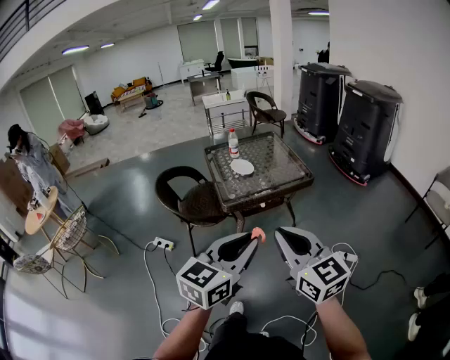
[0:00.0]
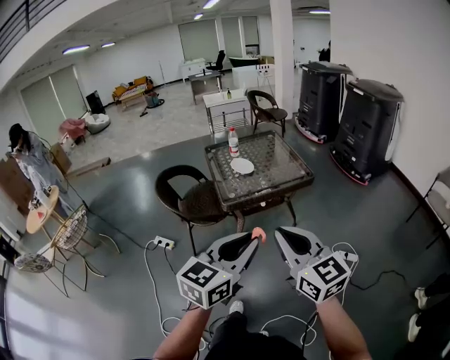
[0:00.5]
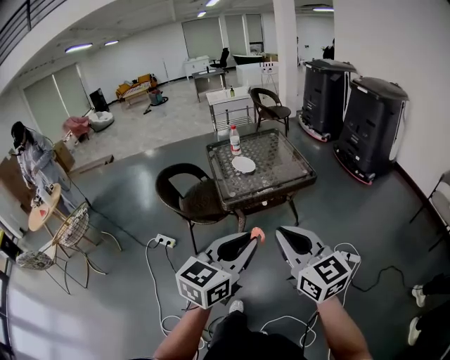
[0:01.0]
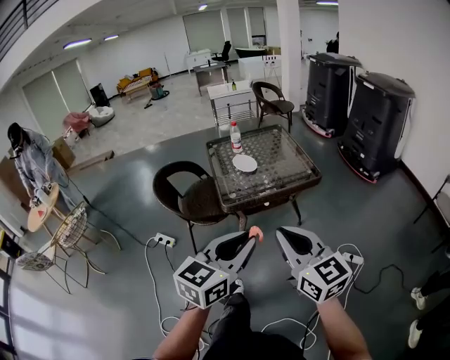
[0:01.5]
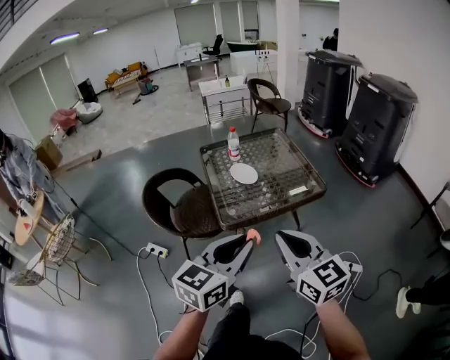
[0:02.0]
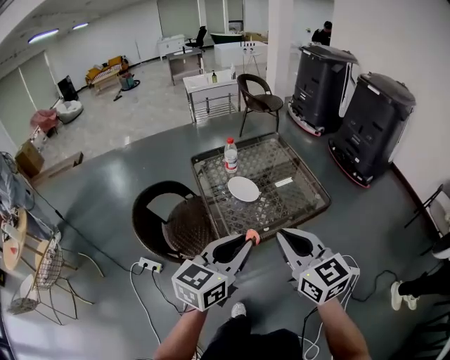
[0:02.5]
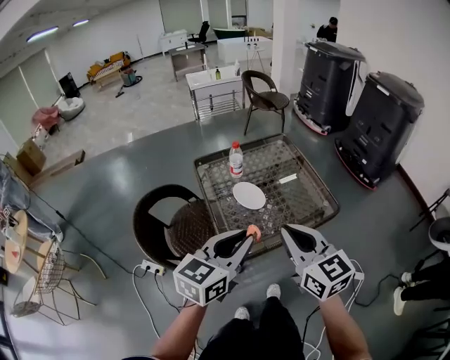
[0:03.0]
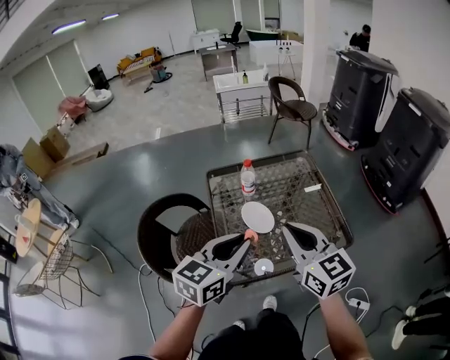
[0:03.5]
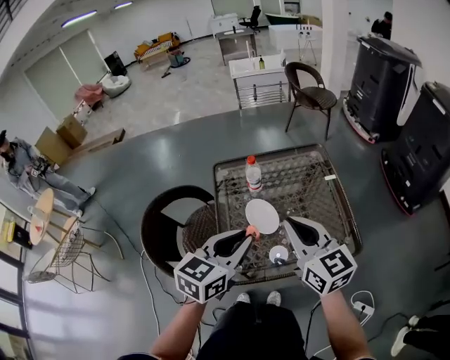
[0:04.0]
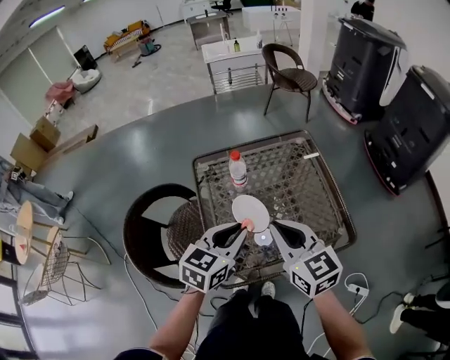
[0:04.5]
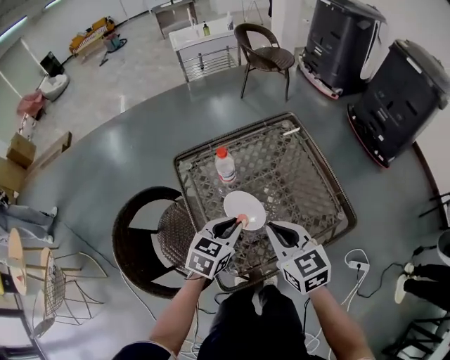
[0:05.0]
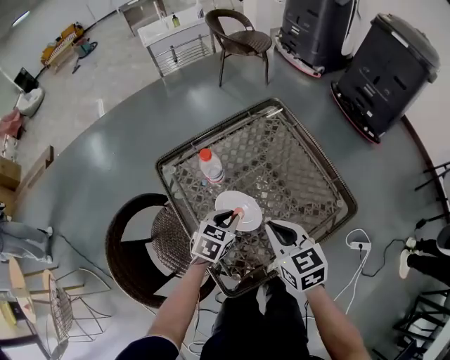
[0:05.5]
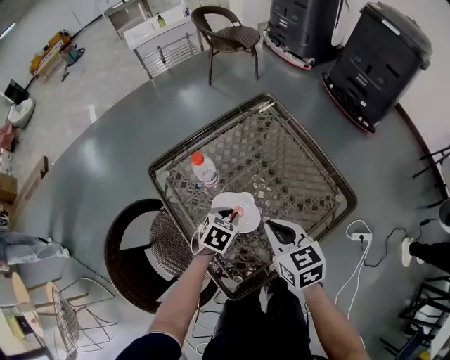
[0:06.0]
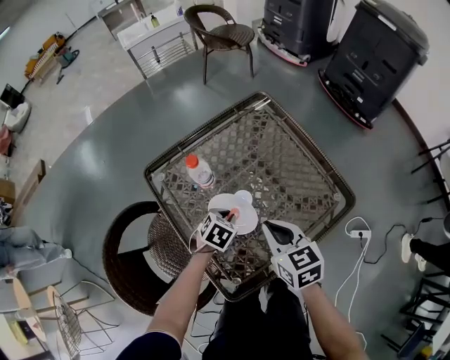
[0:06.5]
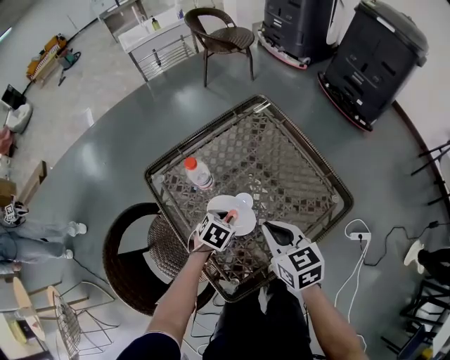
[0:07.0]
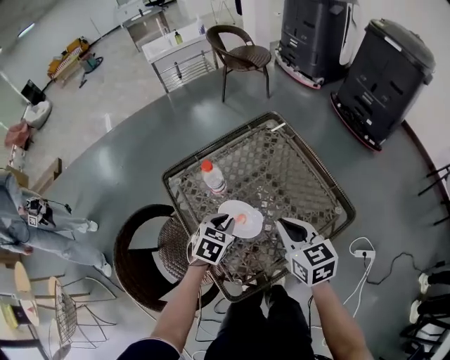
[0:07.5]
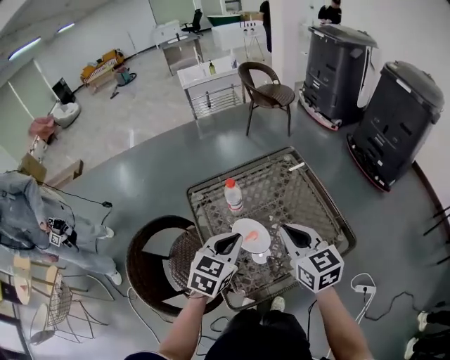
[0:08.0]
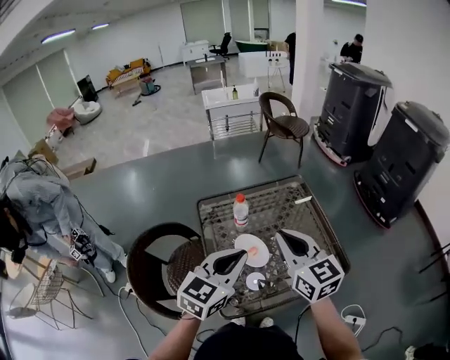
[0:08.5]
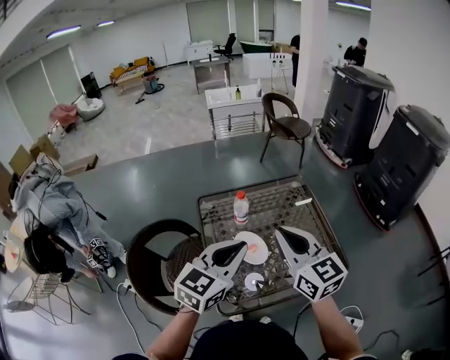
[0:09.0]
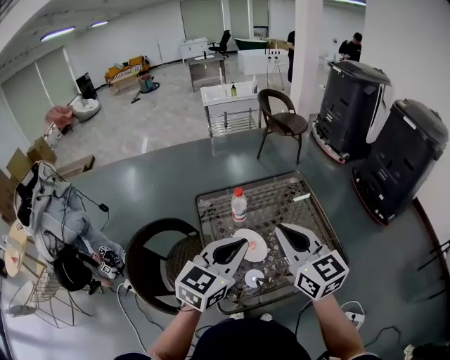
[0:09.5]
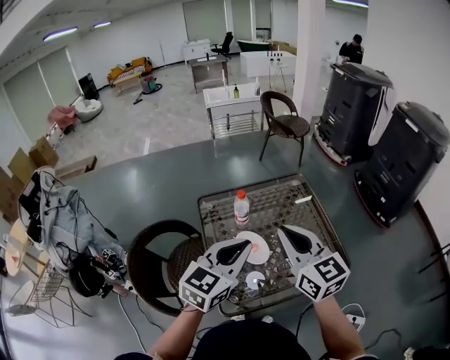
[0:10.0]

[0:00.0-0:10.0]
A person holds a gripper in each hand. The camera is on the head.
0:00.0 to 0:02.0: Both grippers move forward, some 20 cm.
0:02.0 to 0:04.0: Both grippers move forward, some 35 cm.
0:04.0 to 0:06.0: The right gripper shifts about 20 cm downward, and rotates roughly 40 degrees. The left gripper moves downward, some 30 cm, and tips its fingers downward by some 40 degrees.
0:06.0 to 0:08.0: The right gripper moves upward, approximately 15 cm. The left gripper moves upward, approximately 20 cm, and rotates approximately 30 degrees.
0:08.0 to 0:10.0: Both grippers move upward, approximately 10 cm.

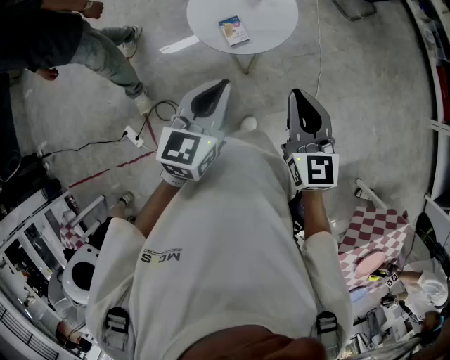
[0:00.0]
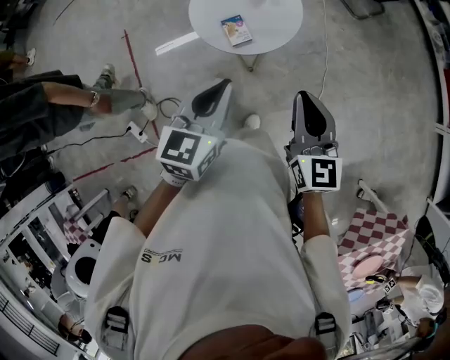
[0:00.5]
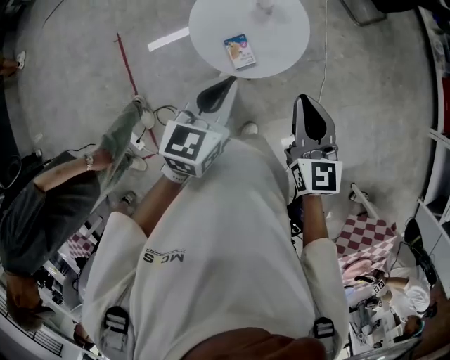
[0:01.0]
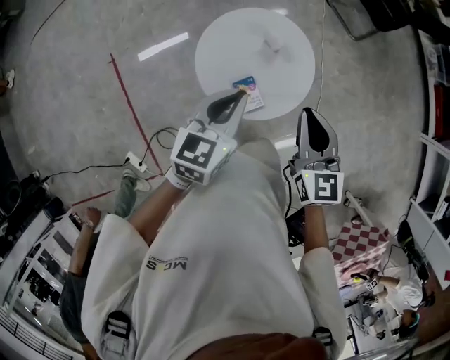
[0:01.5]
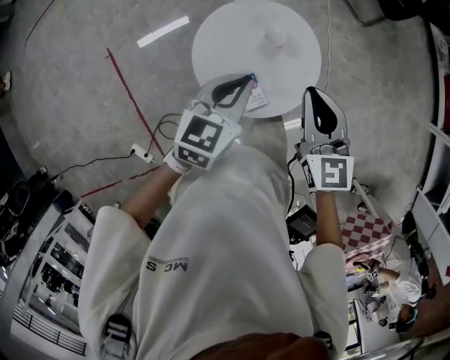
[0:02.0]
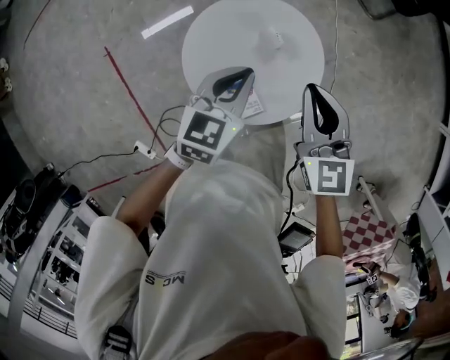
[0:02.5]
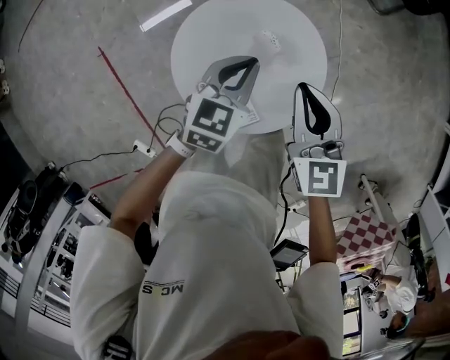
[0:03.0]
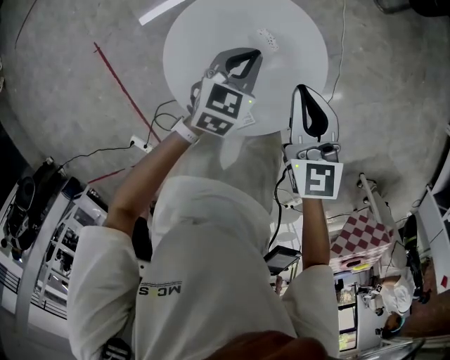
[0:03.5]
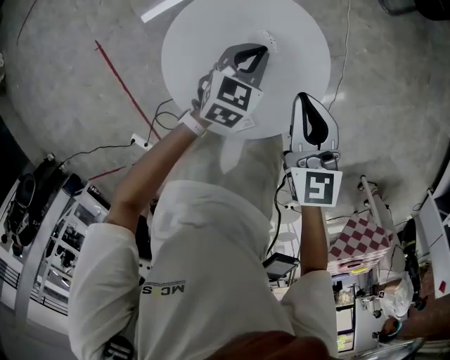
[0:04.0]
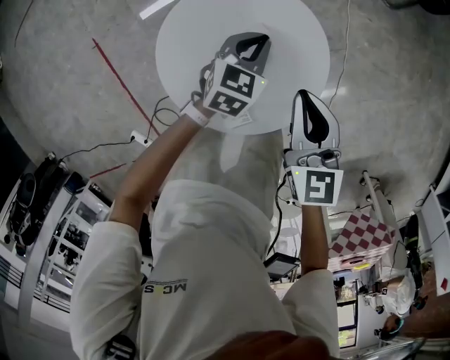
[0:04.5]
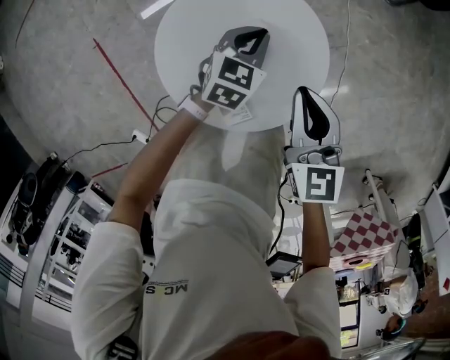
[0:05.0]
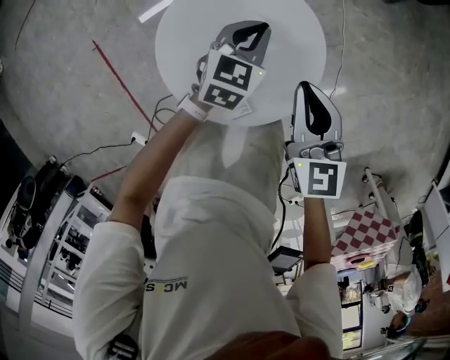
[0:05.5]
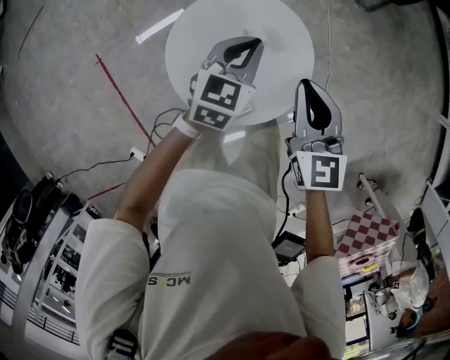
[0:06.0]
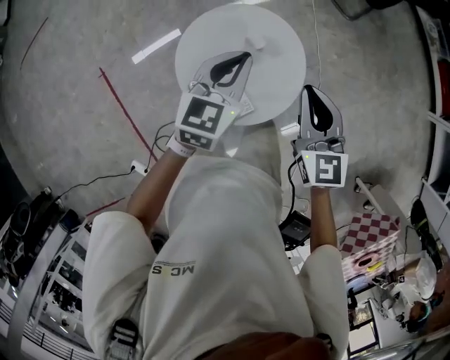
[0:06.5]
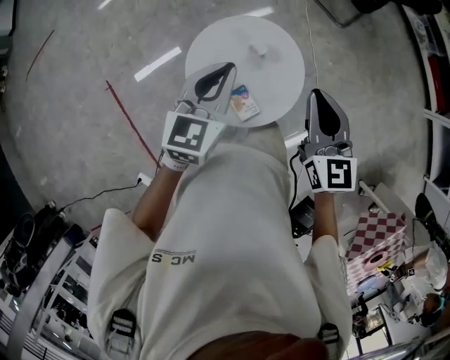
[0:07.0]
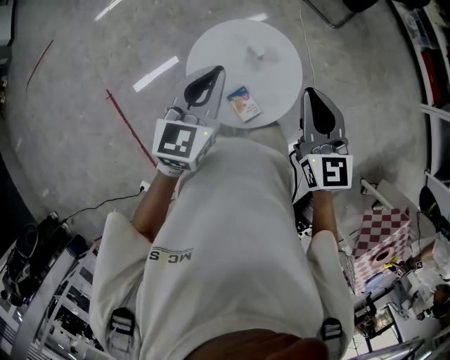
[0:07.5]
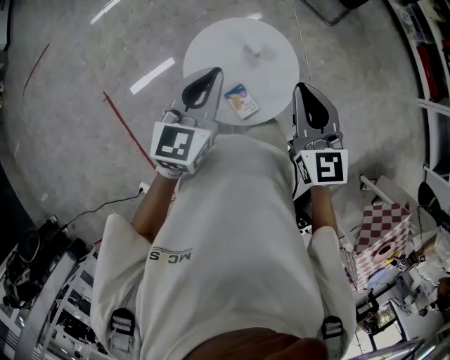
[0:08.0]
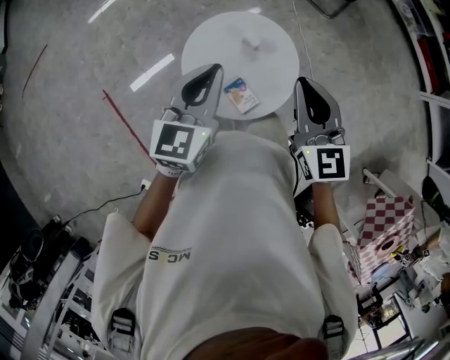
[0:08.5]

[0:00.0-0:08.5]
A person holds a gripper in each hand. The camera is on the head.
0:00.0 to 0:02.0: Both grippers are carried forward, some 50 cm.
0:02.0 to 0:04.0: The two grippers go some 30 cm downward and forward.
0:04.0 to 0:06.5: Both grippers move upward and backward, approximately 25 cm.
0:06.5 to 0:08.5: The right gripper is displaced upward and backward by approximately 15 cm; the left gripper moves upward, backward and to the left, about 20 cm.

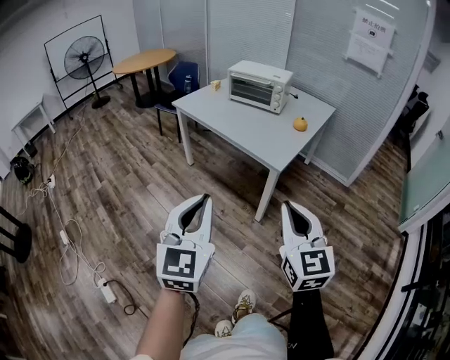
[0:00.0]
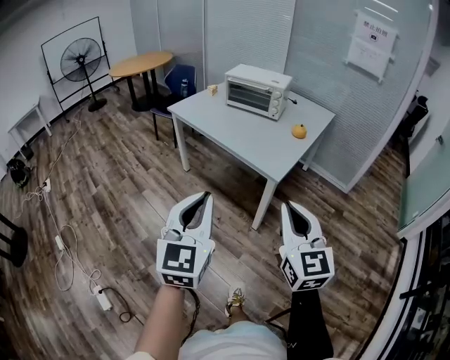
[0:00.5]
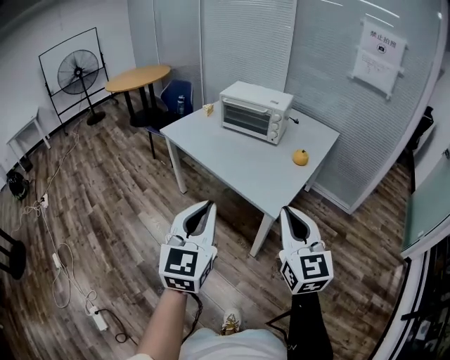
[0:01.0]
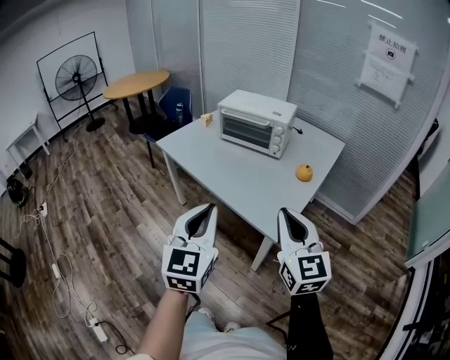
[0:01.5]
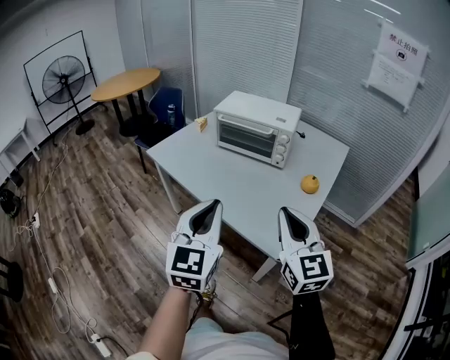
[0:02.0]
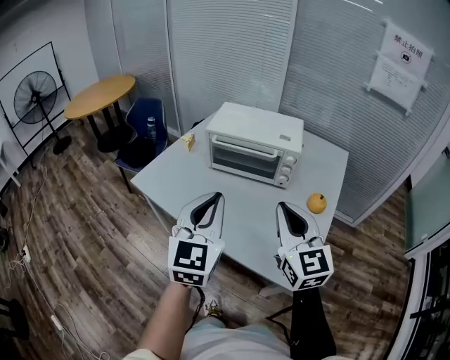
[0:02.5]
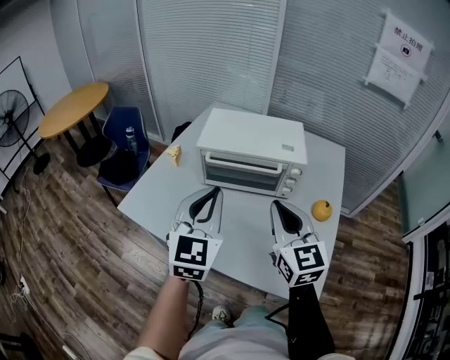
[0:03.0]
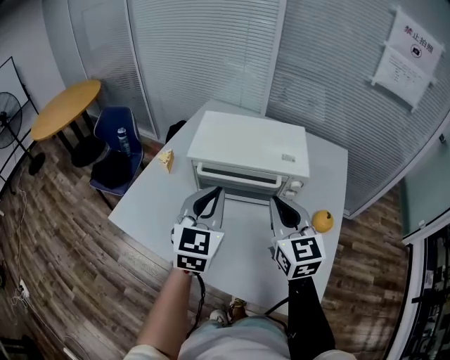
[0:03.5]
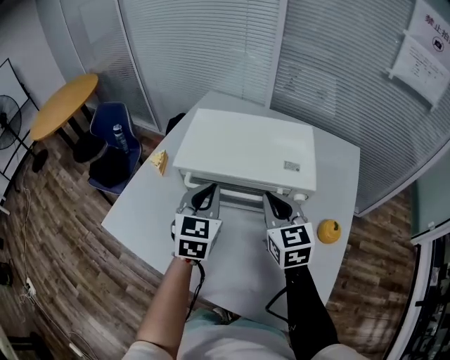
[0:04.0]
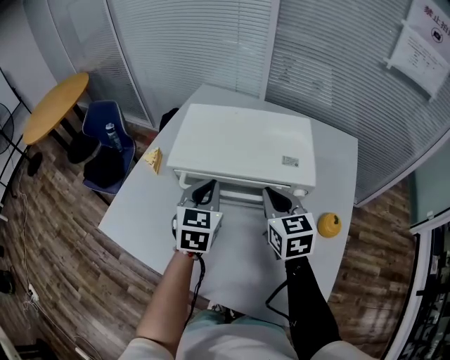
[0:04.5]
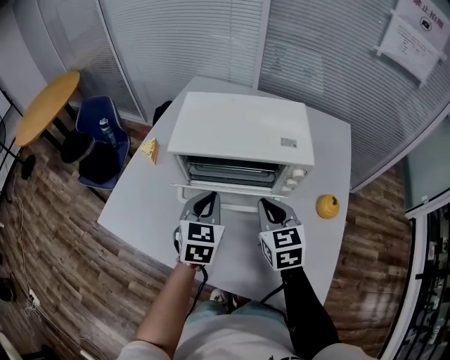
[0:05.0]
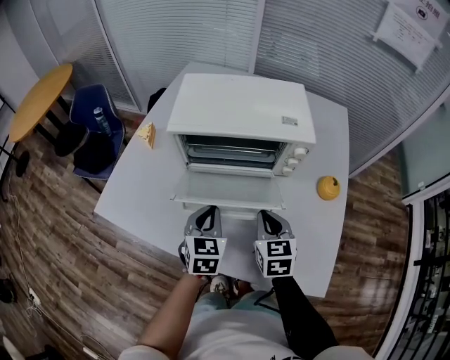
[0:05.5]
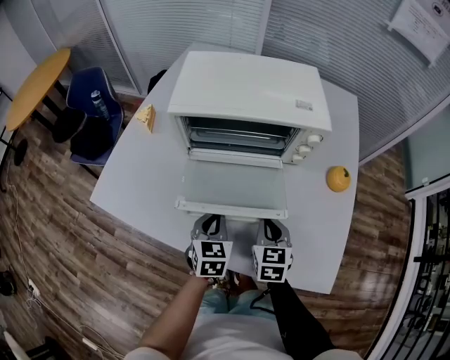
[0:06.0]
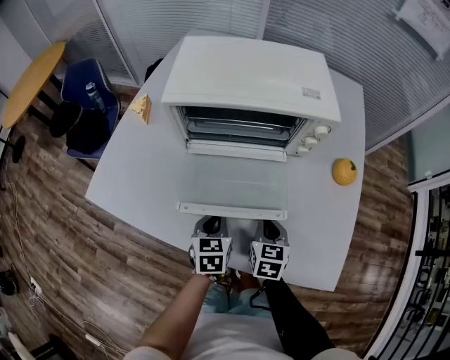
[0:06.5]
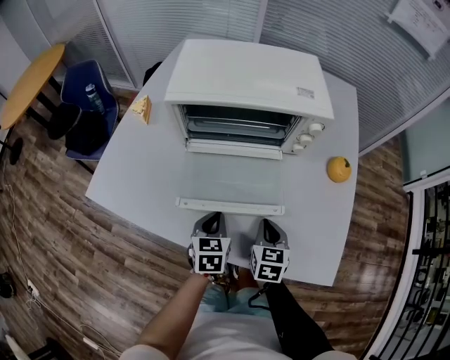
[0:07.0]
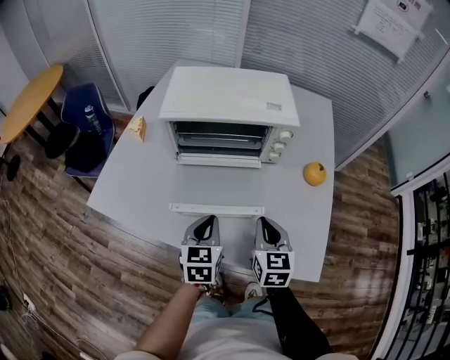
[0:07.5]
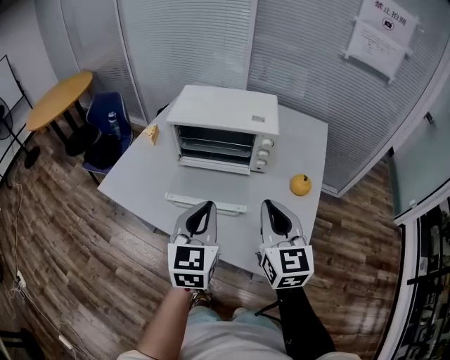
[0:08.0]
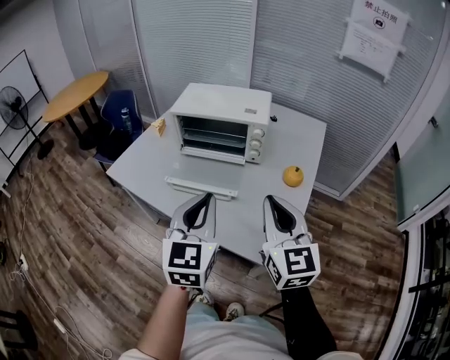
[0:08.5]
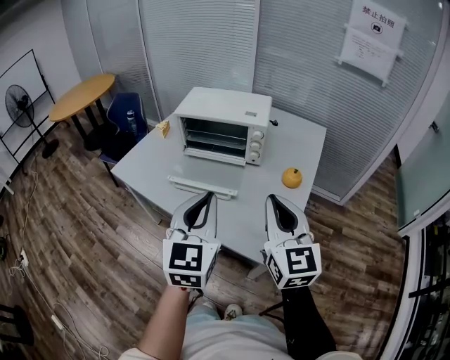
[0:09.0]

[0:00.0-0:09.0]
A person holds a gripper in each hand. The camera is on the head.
0:00.0 to 0:02.0: The two grippers travel together, forward, about 50 cm.
0:02.0 to 0:04.5: Both grippers are carried forward, approximately 50 cm. The left gripper turns by some 30 degrees. The right gripper turns by about 30 degrees.
0:04.5 to 0:07.0: Both grippers move downward and backward, roughly 30 cm. The right gripper turns by approximately 30 degrees; the left gripper turns by approximately 20 degrees.
0:07.0 to 0:09.0: The grippers both shift upward and backward by about 40 cm. The right gripper tilts its fingers about 40 degrees upward. Meanwhile the left gripper points its fingers roughly 40 degrees further upward.
